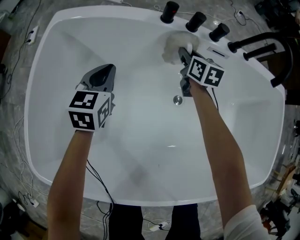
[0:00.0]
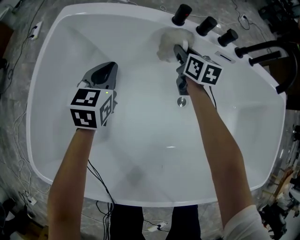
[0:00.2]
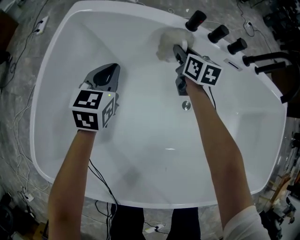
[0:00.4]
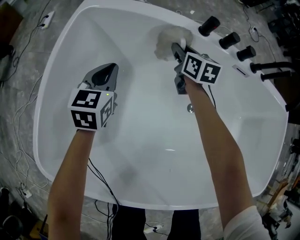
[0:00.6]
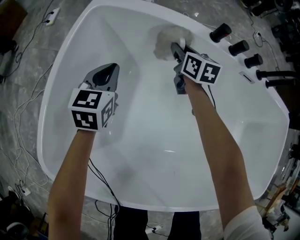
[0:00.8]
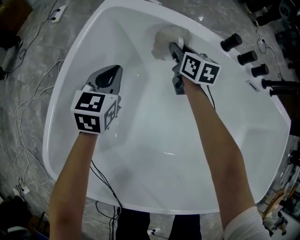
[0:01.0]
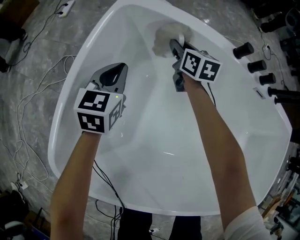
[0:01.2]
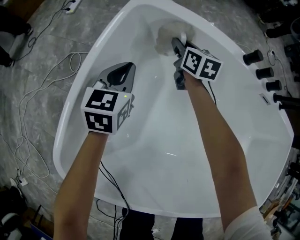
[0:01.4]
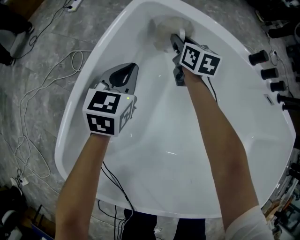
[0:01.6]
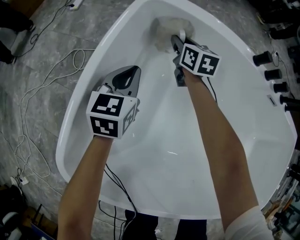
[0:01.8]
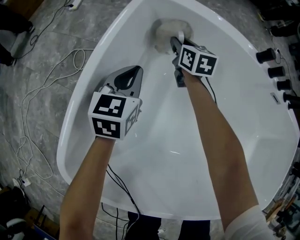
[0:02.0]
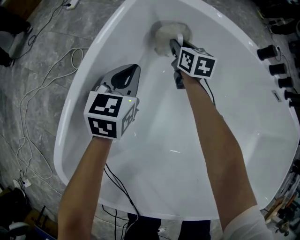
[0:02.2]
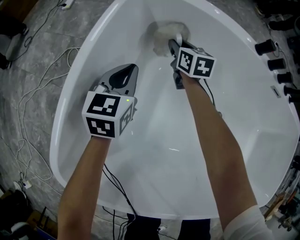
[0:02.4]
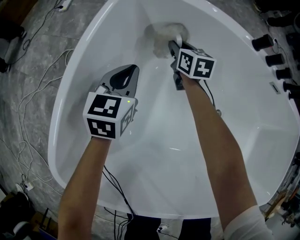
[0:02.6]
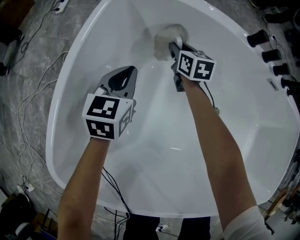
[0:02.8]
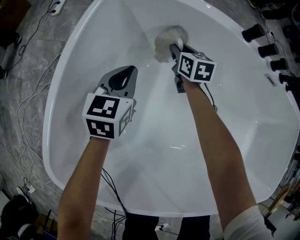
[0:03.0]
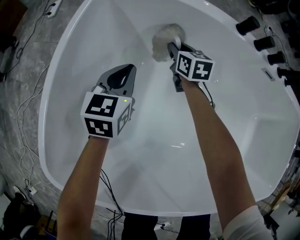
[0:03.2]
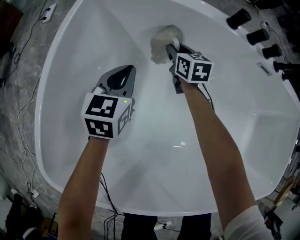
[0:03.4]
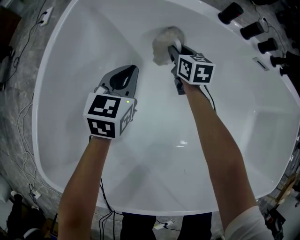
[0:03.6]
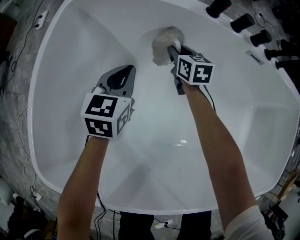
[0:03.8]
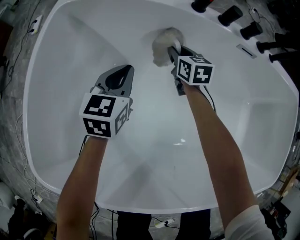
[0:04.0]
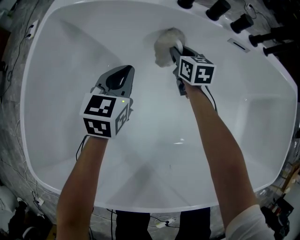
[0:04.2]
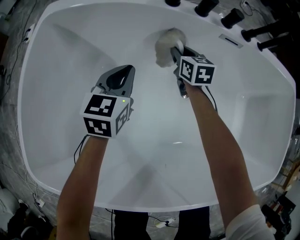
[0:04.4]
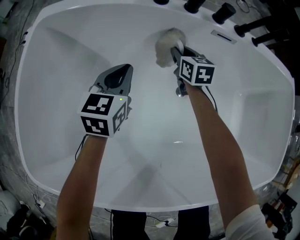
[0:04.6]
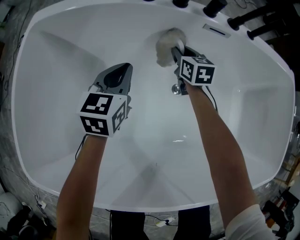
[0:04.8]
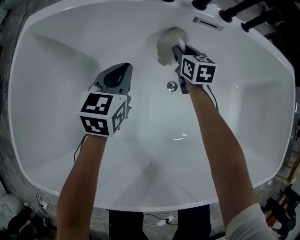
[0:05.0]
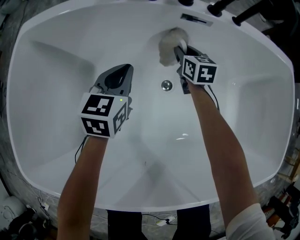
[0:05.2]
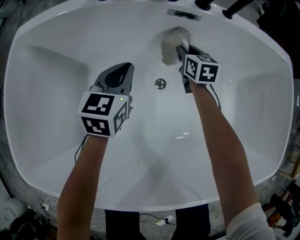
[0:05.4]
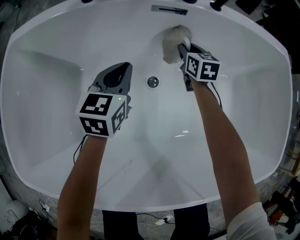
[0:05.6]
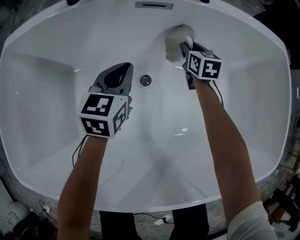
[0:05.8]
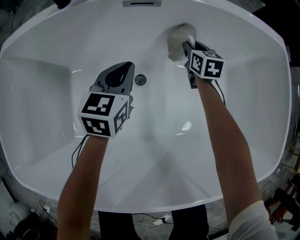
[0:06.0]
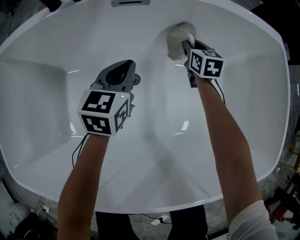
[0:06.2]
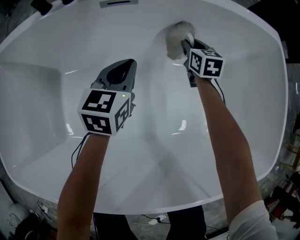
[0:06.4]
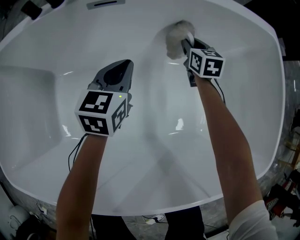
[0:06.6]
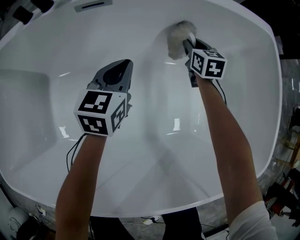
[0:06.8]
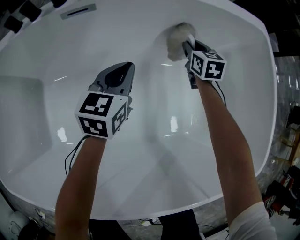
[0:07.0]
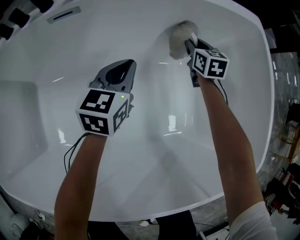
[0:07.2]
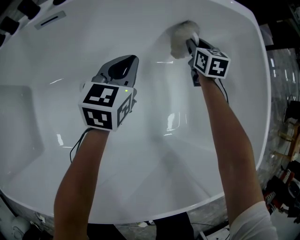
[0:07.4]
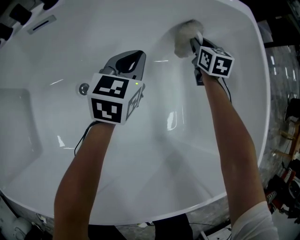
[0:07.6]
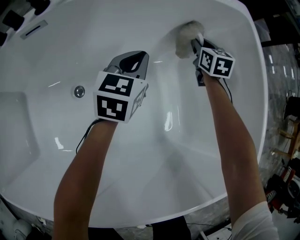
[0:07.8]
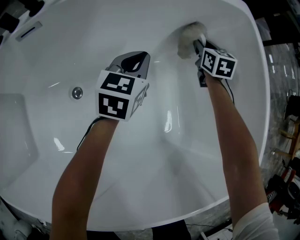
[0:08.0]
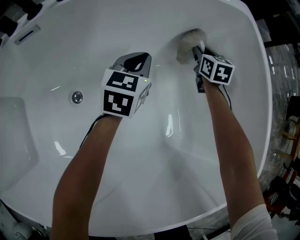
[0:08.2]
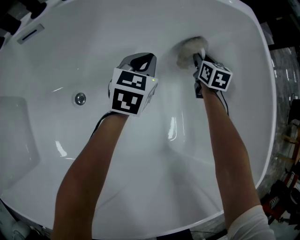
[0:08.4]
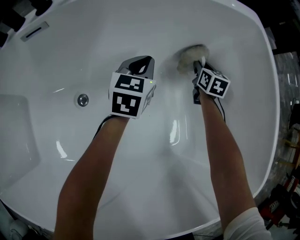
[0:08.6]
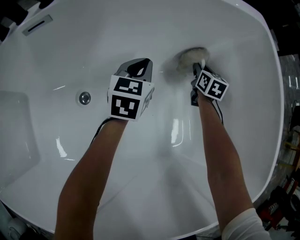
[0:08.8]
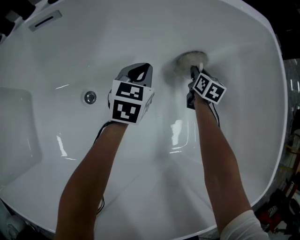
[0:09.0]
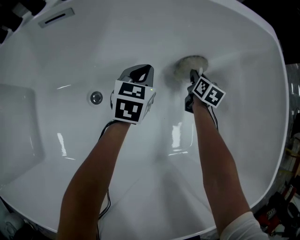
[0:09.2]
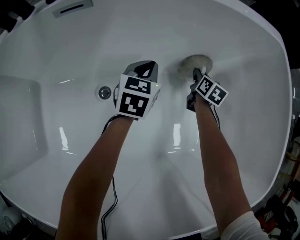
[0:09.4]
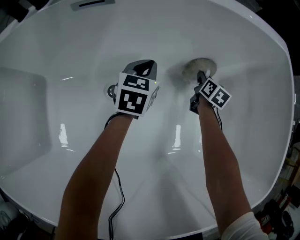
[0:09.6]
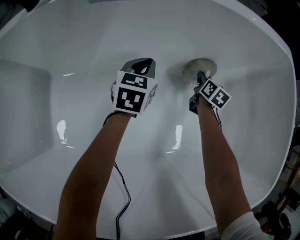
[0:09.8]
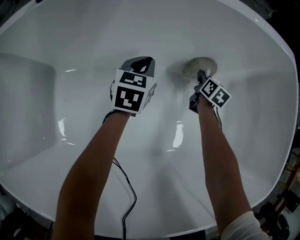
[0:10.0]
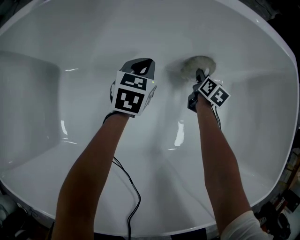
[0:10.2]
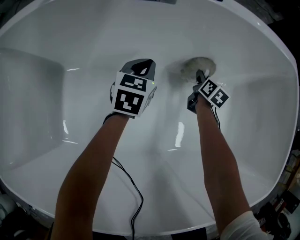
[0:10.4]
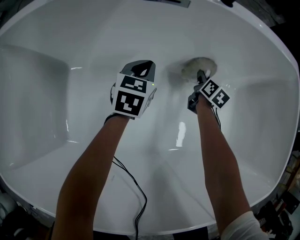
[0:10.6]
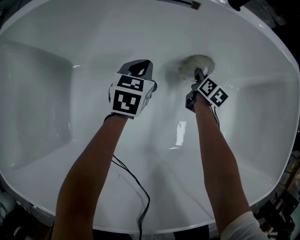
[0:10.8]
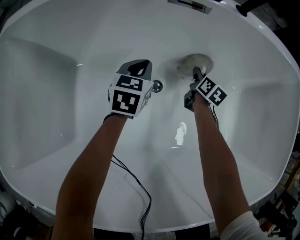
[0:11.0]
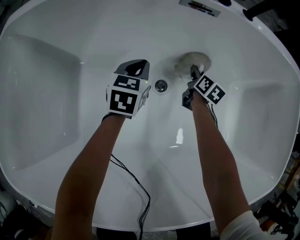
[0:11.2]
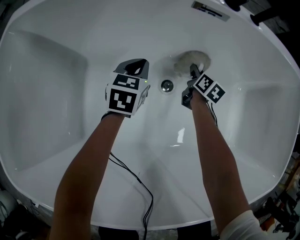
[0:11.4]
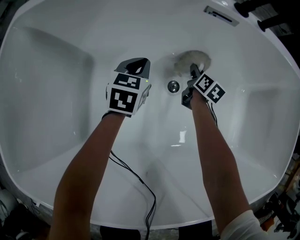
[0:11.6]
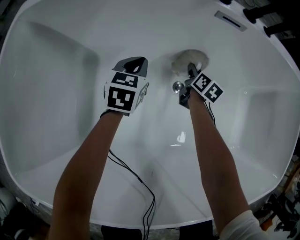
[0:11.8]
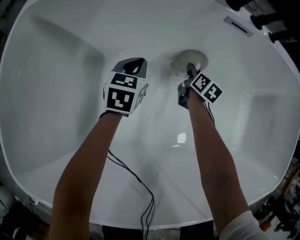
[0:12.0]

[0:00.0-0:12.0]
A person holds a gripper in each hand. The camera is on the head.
0.0 to 1.6 s: The right gripper moves to the left, about 40 cm; the left gripper heads to the left, covering roughly 25 cm.
1.6 to 3.0 s: The left gripper is displaced to the right by some 5 cm. Meanwhile the right gripper goes some 15 cm downward, to the right and backward.
3.0 to 4.4 s: The two grippers go approximately 25 cm to the right.
4.4 to 6.0 s: Both grippers travel together to the right, some 35 cm.
6.0 to 7.6 s: The two grippers go about 30 cm to the right.
7.6 to 9.0 s: The grippers both shift downward by roughly 15 cm.
9.0 to 10.4 s: The left gripper is displaced to the left by about 5 cm.
10.4 to 12.0 s: The left gripper swings left and right, about 25 cm each way, with 2 reversals. The right gripper swings left and right, some 20 cm each way, with 2 reversals.

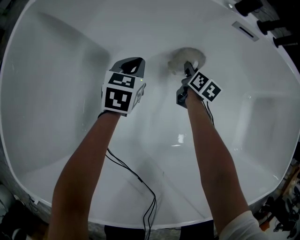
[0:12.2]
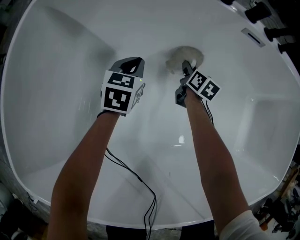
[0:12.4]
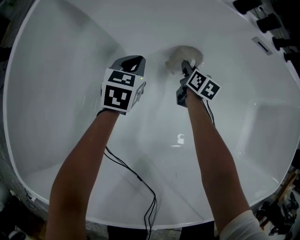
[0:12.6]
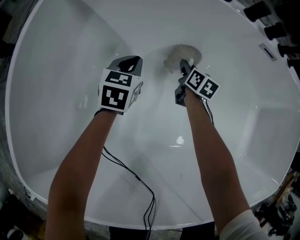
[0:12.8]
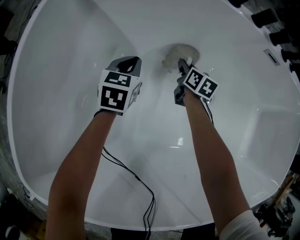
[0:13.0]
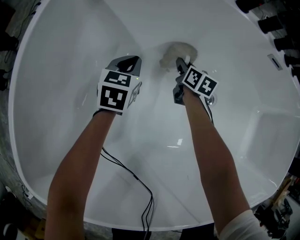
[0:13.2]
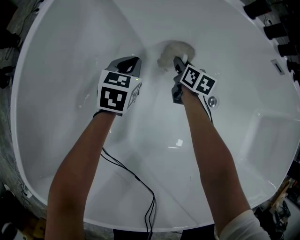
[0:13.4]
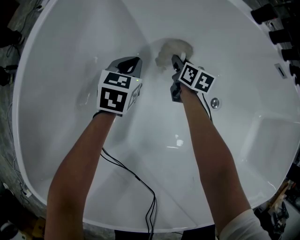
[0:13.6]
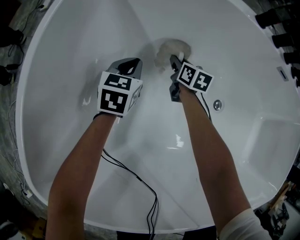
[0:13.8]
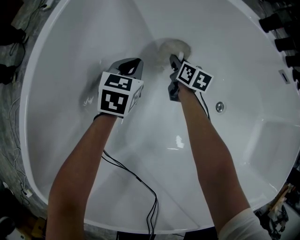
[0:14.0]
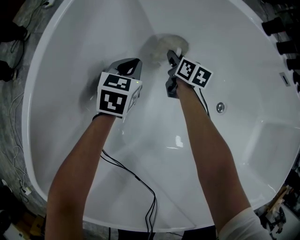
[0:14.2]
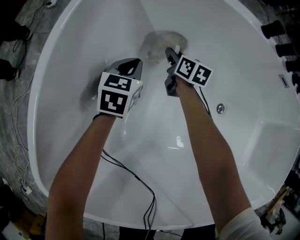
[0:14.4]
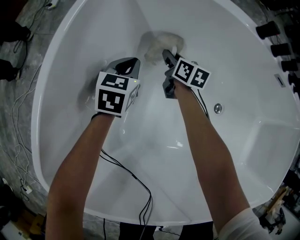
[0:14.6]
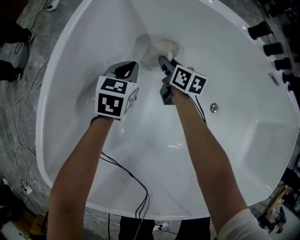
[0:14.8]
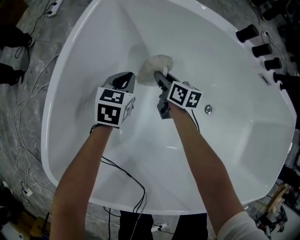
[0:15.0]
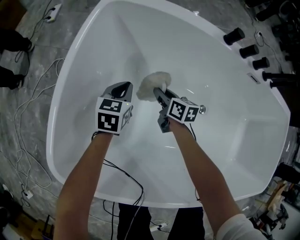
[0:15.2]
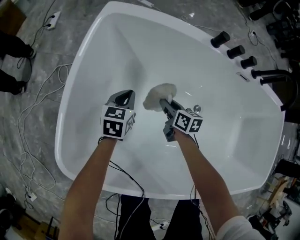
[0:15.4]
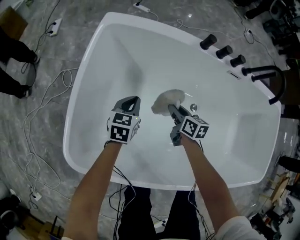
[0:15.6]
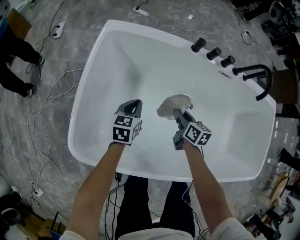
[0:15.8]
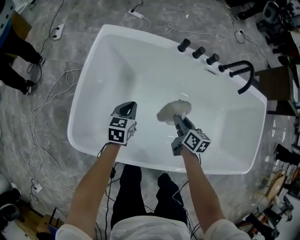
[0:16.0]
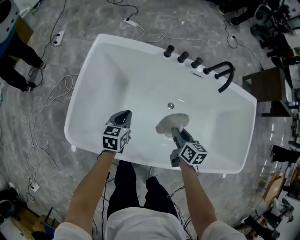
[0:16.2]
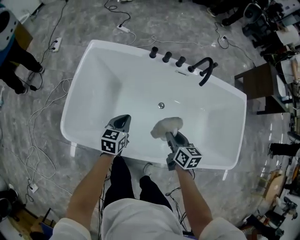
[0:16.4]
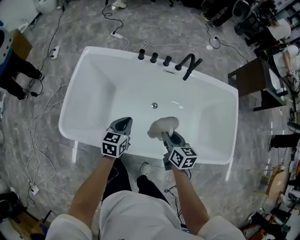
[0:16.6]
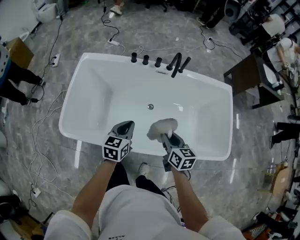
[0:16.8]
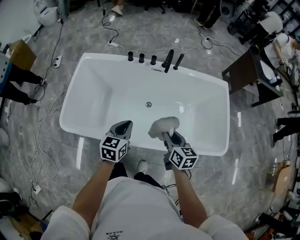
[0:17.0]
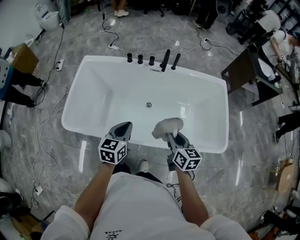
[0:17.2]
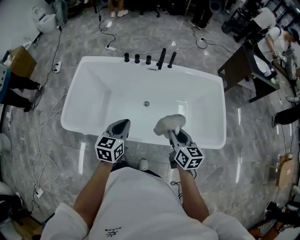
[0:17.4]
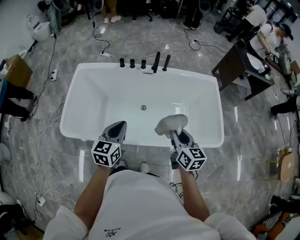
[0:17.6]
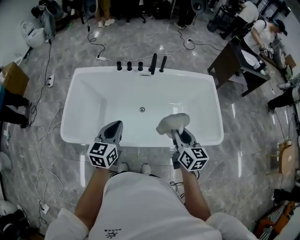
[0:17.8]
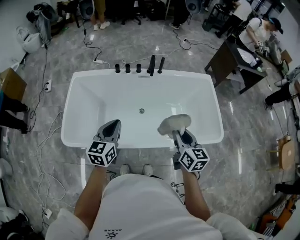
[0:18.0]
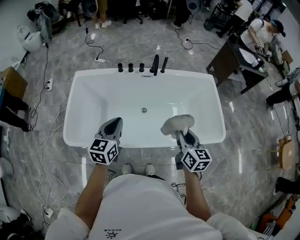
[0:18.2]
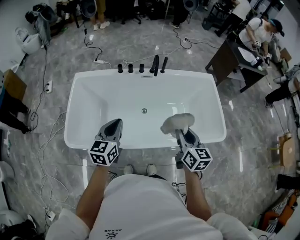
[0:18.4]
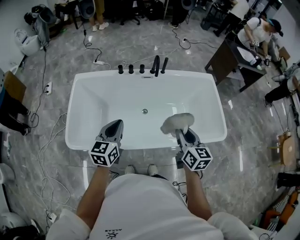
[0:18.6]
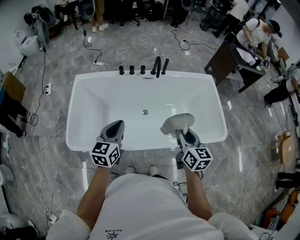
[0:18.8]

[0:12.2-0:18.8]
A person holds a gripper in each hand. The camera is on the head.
12.2 to 13.8 s: The two grippers go approximately 25 cm to the left. The right gripper swivels approximately 20 degrees.
13.8 to 15.4 s: The right gripper goes some 20 cm backward and upward, while the left gripper moves upward and backward, some 15 cm.
15.4 to 17.2 s: The pair of grippers is taken backward and to the right, roughly 50 cm. Both grippers move upward, about 40 cm. The right gripper rotates roughly 20 degrees.
17.2 to 18.8 s: The left gripper goes some 15 cm to the left and upward; the right gripper goes approximately 10 cm upward.

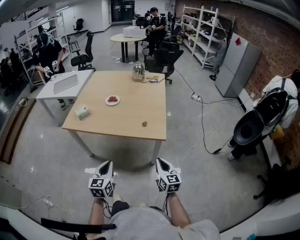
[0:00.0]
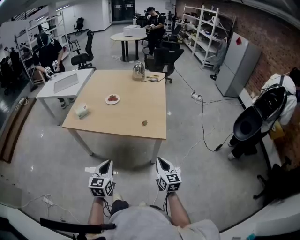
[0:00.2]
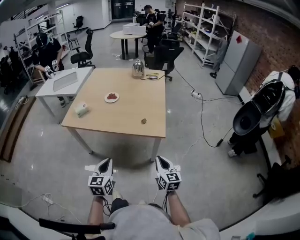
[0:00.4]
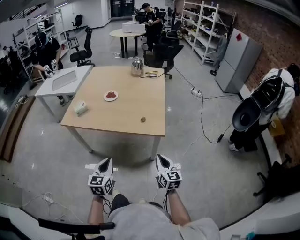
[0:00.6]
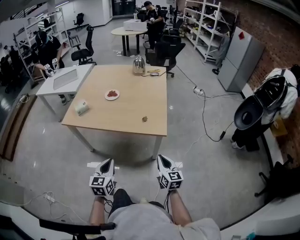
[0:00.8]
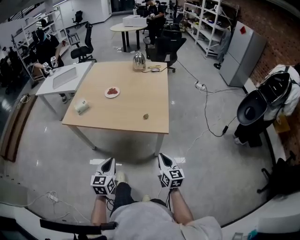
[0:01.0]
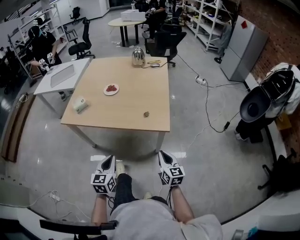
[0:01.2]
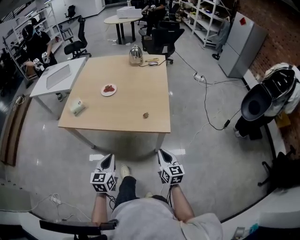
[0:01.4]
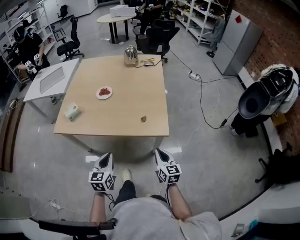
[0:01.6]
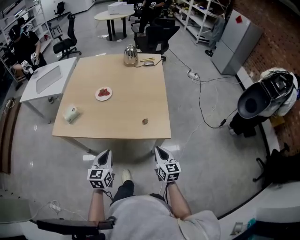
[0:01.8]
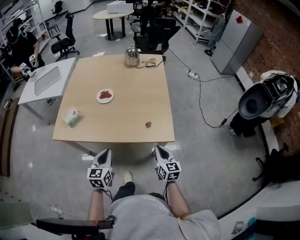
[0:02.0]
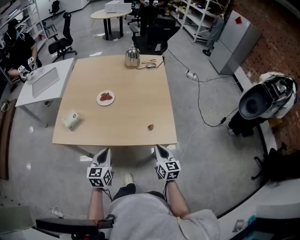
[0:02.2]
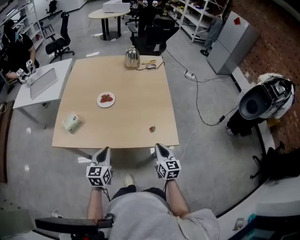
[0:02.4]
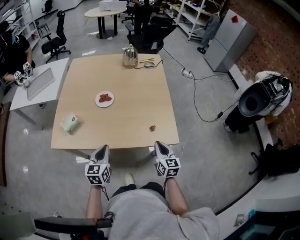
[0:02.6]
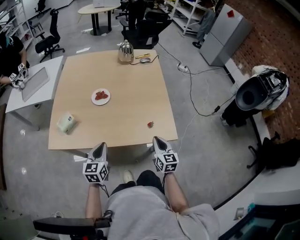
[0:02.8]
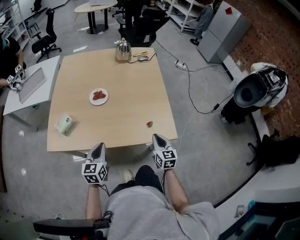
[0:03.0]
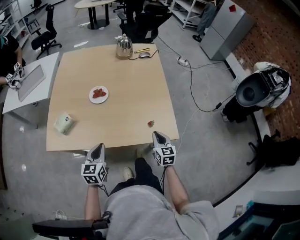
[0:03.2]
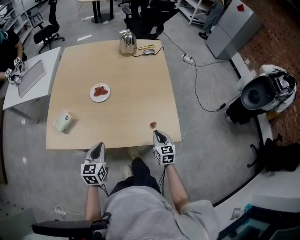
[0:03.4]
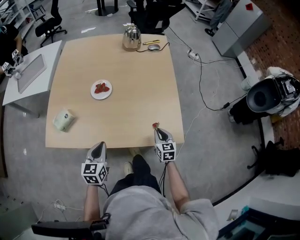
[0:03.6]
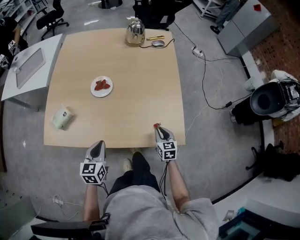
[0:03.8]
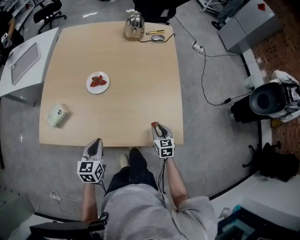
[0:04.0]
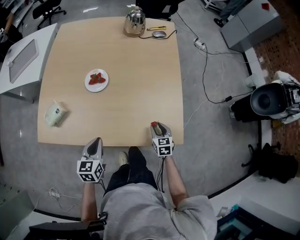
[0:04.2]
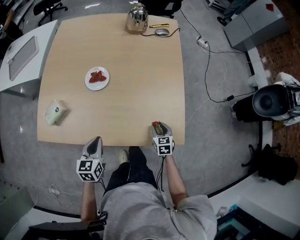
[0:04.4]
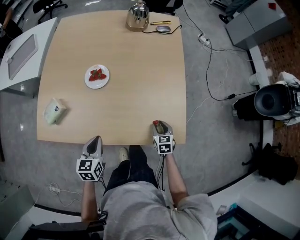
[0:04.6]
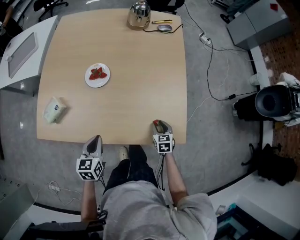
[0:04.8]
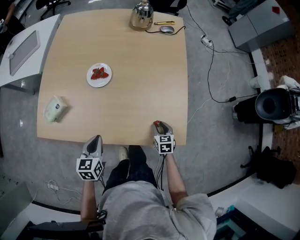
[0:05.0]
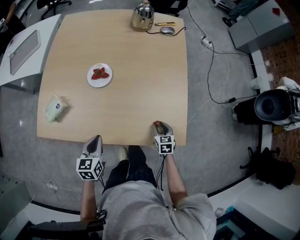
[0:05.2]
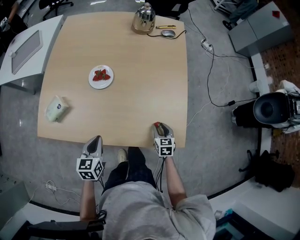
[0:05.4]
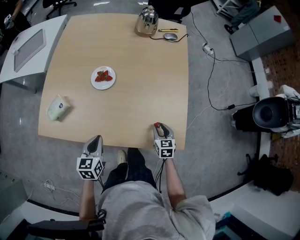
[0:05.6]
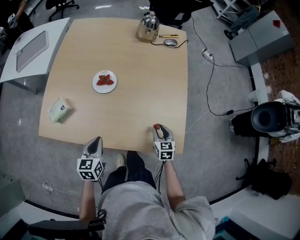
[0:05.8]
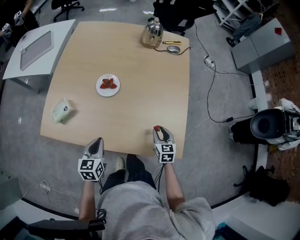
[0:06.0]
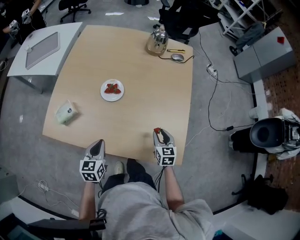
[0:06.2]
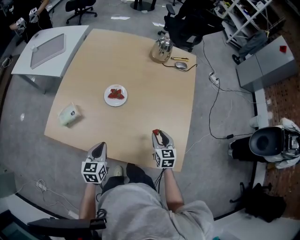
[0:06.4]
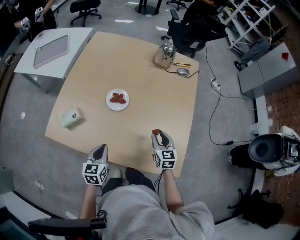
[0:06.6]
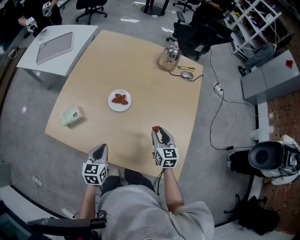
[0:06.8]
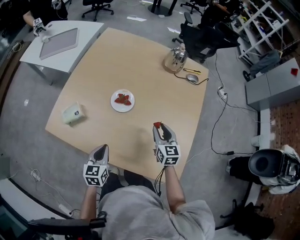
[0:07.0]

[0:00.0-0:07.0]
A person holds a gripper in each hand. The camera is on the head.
0.0 to 1.4 s: Both grippers move forward, approximately 5 cm.
1.4 to 2.8 s: The grippers both shift forward and to the left by approximately 25 cm.
2.8 to 4.2 s: The left gripper goes about 10 cm forward and downward. The right gripper is displaced downward and forward by about 20 cm, changes its angle by roughly 30 degrees, and opens up.
4.2 to 5.6 s: The grippers stay close to where they were, moving slightly.
5.6 to 7.0 s: The right gripper travels forward, upward and to the left by some 25 cm, and rotates about 20 degrees, while the left gripper shifts by approximately 5 cm.
